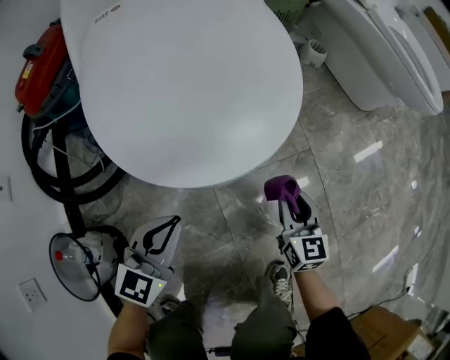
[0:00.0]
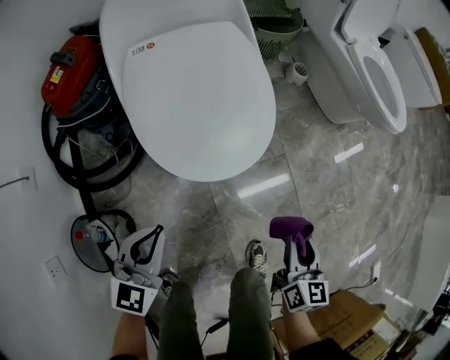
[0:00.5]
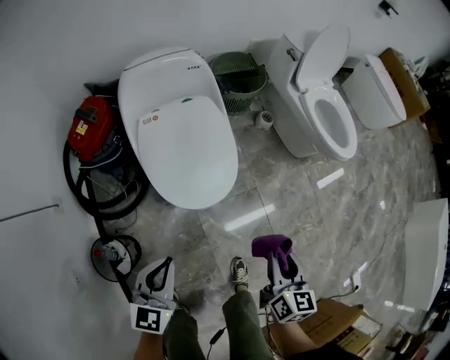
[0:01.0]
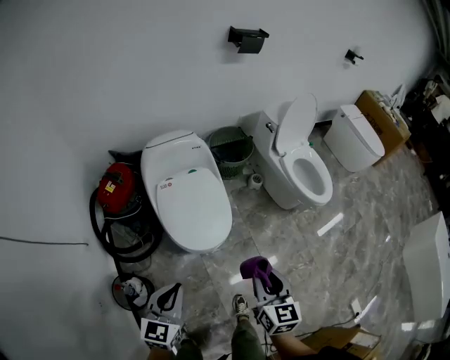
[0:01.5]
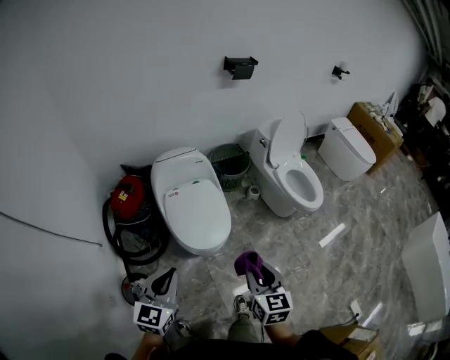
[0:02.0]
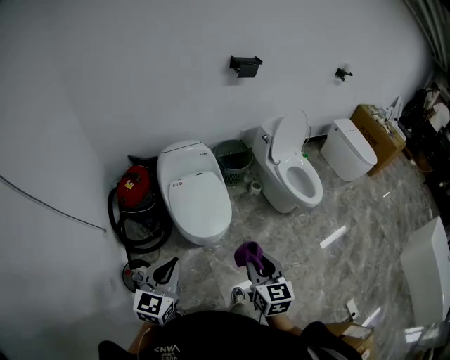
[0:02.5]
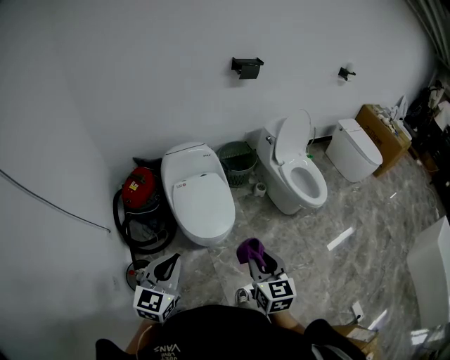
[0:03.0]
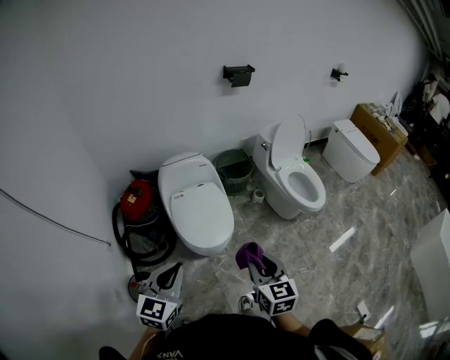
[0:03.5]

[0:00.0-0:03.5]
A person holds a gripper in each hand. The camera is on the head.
0:00.0 to 0:02.0: The grippers both shift upward by roughly 70 cm.
0:02.0 to 0:03.5: The left gripper moves about 5 cm.

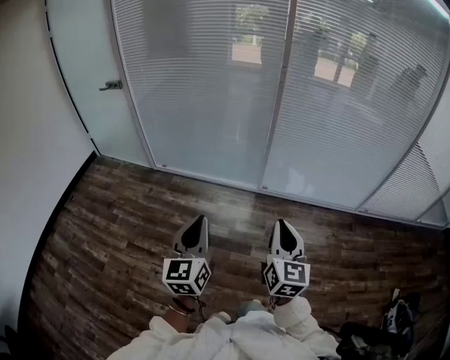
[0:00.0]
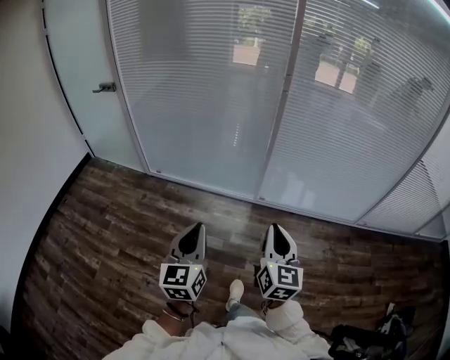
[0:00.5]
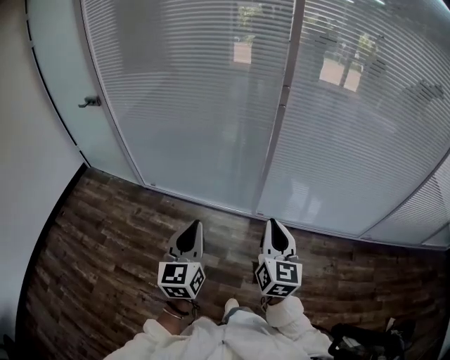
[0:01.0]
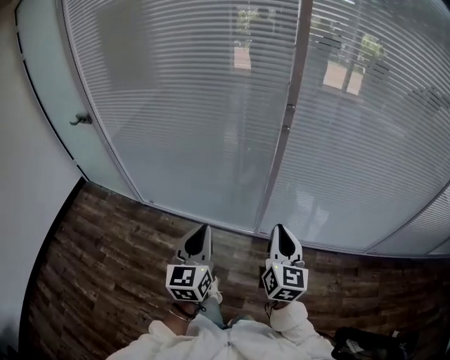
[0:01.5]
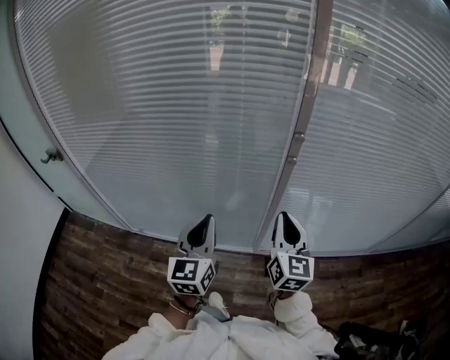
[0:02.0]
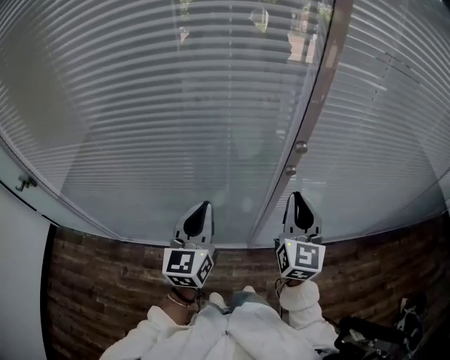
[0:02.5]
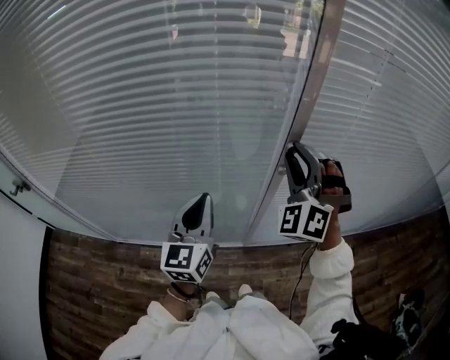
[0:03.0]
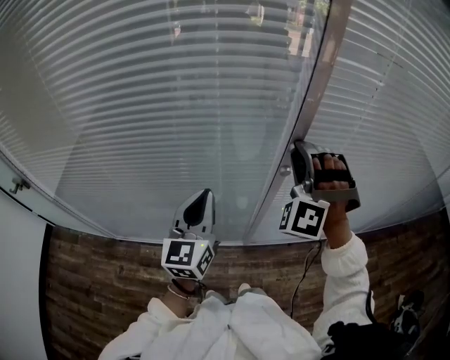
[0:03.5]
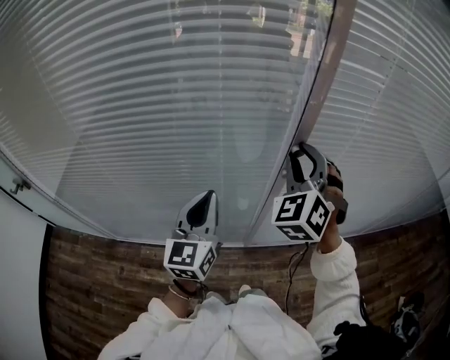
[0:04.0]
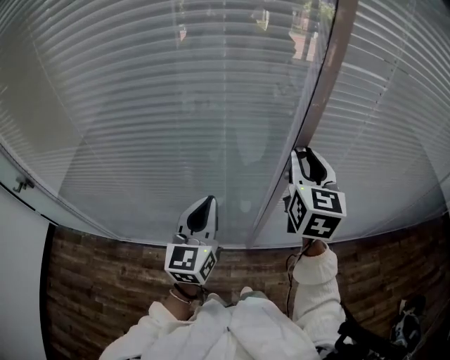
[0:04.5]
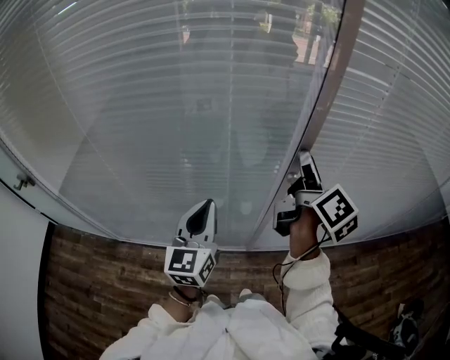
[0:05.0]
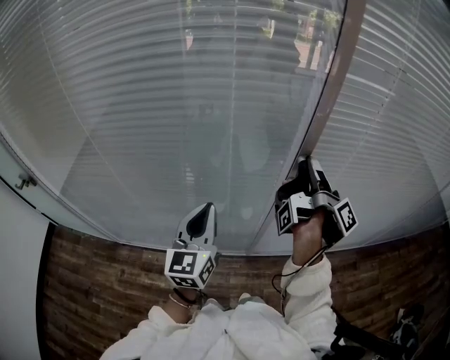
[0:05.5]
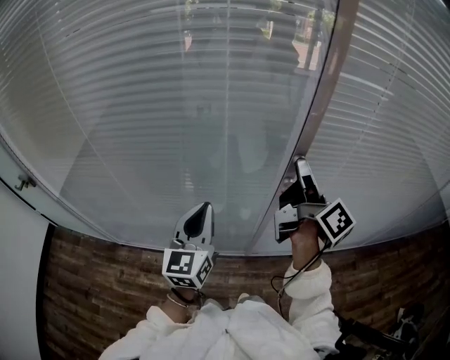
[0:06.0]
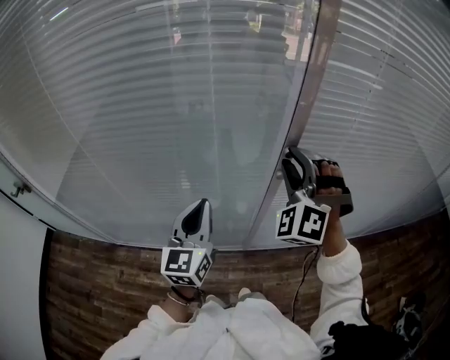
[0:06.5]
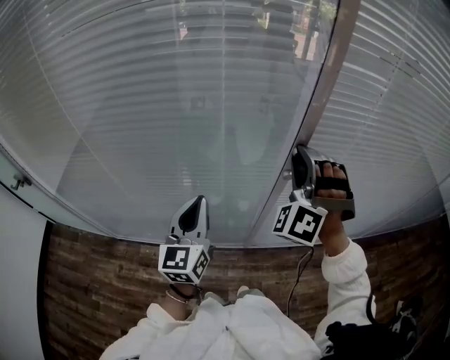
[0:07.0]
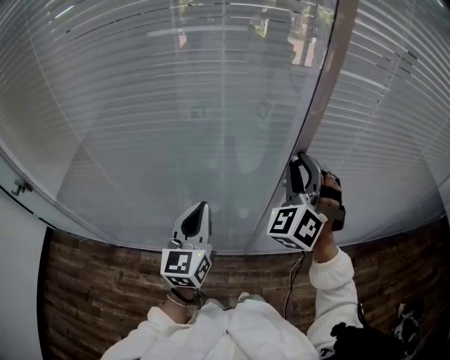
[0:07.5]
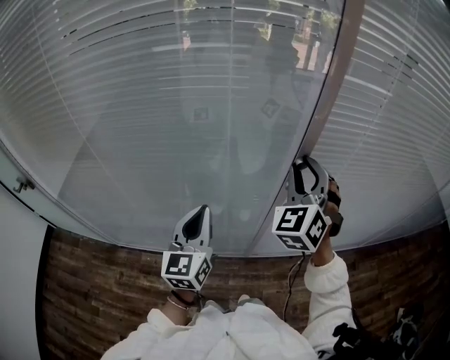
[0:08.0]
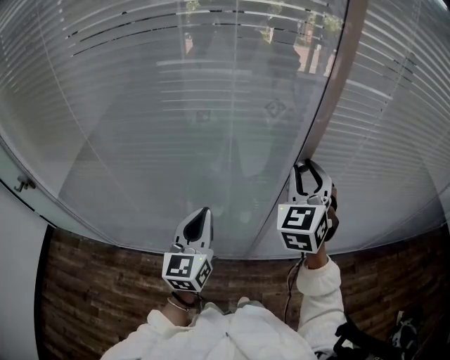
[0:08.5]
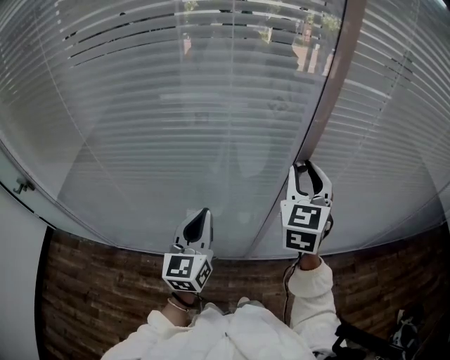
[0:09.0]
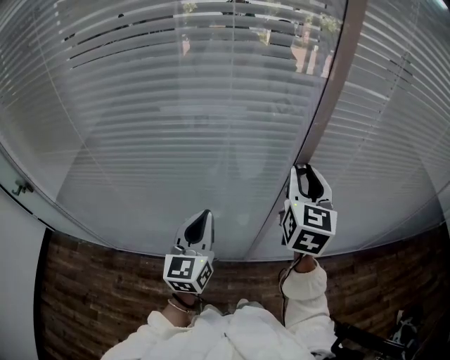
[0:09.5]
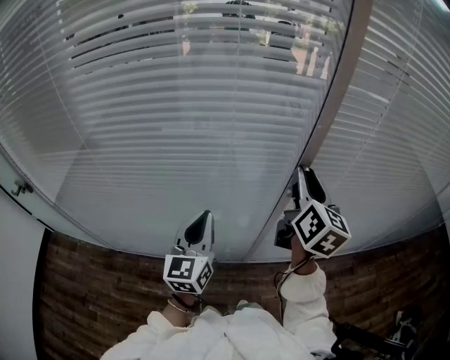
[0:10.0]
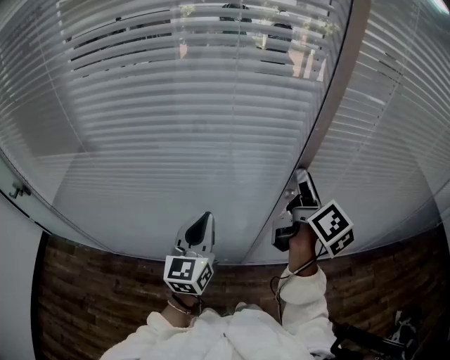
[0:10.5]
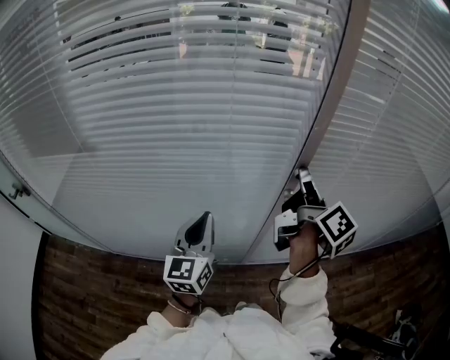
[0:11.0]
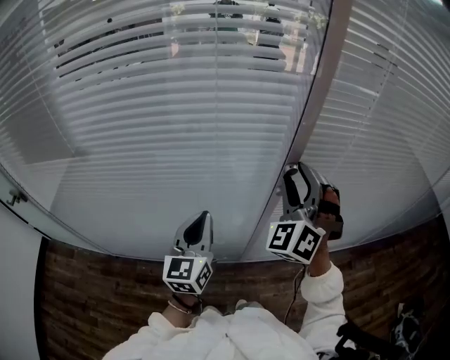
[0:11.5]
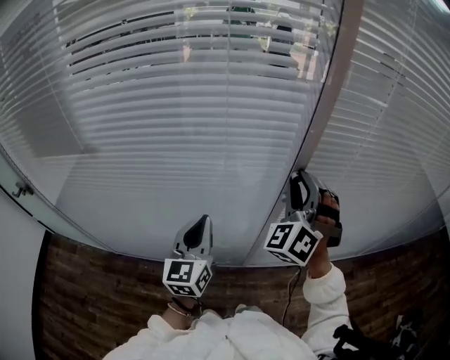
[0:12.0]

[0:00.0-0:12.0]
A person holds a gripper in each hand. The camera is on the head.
0:00.0 to 0:02.0: Both grippers are carried forward, some 60 cm.
0:02.0 to 0:04.0: The right gripper moves forward and upward, approximately 20 cm, rotates around the line of its fingers by some 60 degrees, counterclockwise from behind, and opens its fingers. The left gripper travels forward by approximately 15 cm.
0:04.0 to 0:06.0: The right gripper rotates around the line of its fingers by about 120 degrees, clockwise from behind.
0:06.0 to 0:08.0: The right gripper twists about 110 degrees counterclockwise, seen from behind.
0:08.0 to 0:10.0: The right gripper rotates around the line of its fingers by some 70 degrees, clockwise from behind.
0:10.0 to 0:12.0: The right gripper twists approximately 90 degrees counterclockwise, seen from behind.

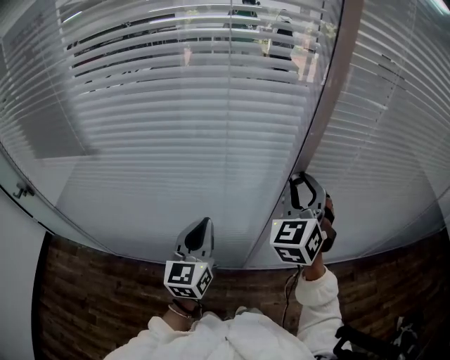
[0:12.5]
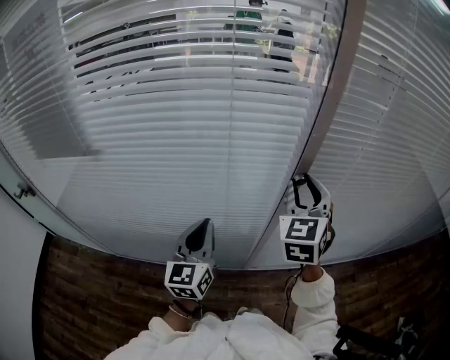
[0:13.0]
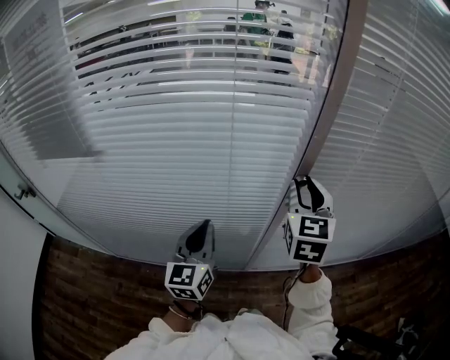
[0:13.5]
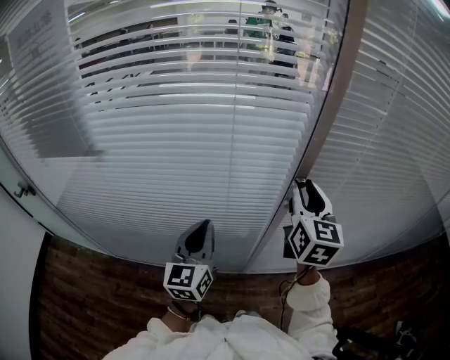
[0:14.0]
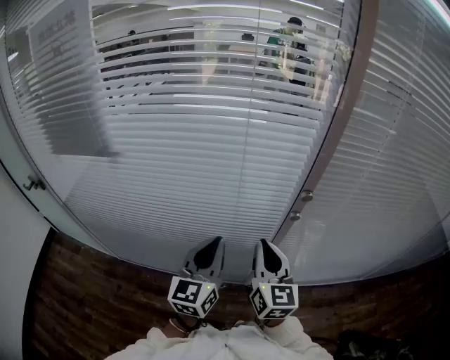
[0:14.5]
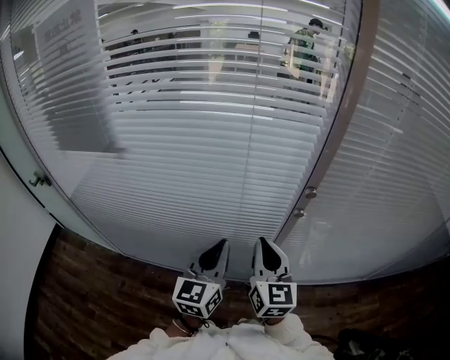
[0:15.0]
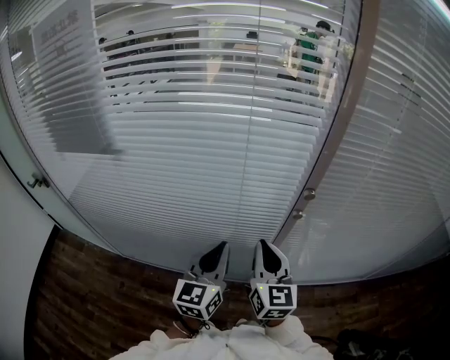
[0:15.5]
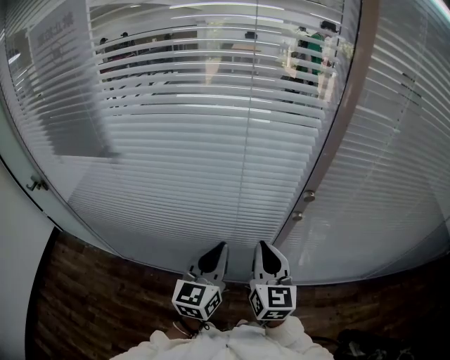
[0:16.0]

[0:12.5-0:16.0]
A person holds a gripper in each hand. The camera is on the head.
0:12.5 to 0:14.5: The right gripper goes about 15 cm downward, backward and to the left, rotates around the line of its fingers by roughly 50 degrees, clockwise from behind, and closes its fingers.
0:14.5 to 0:16.0: The grippers stay close to where they were, moving slightly.

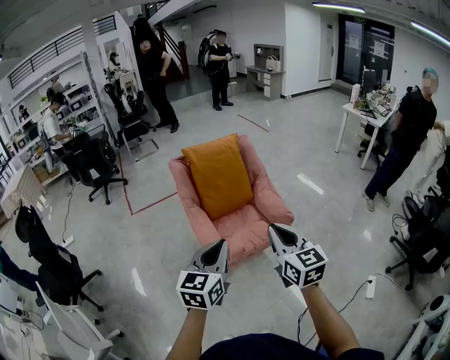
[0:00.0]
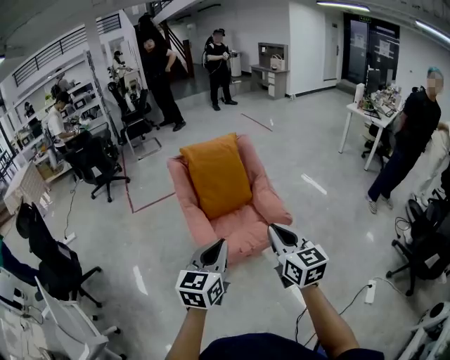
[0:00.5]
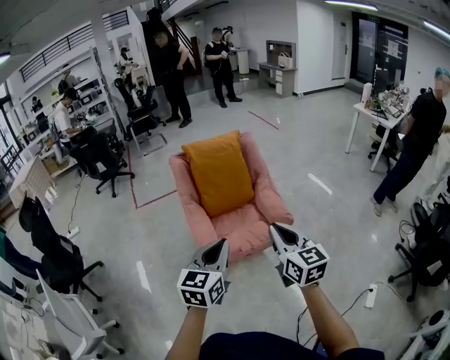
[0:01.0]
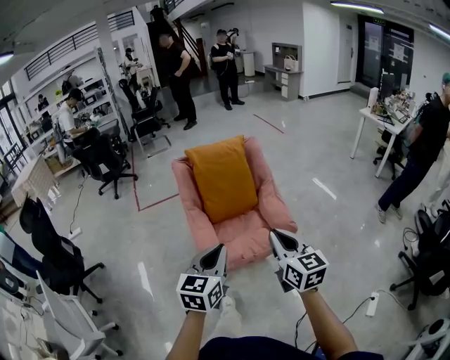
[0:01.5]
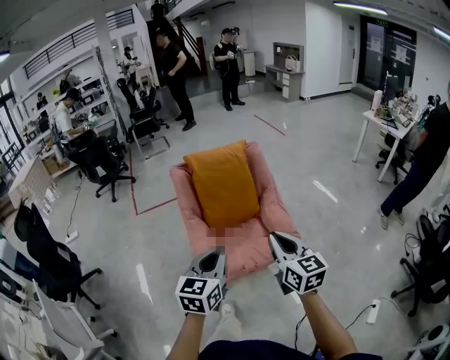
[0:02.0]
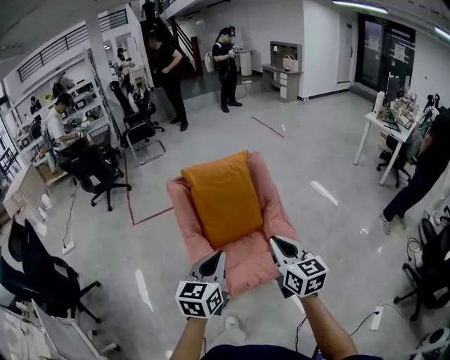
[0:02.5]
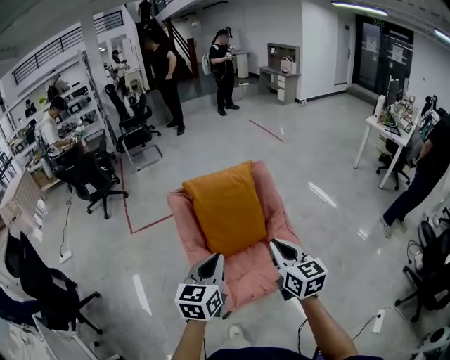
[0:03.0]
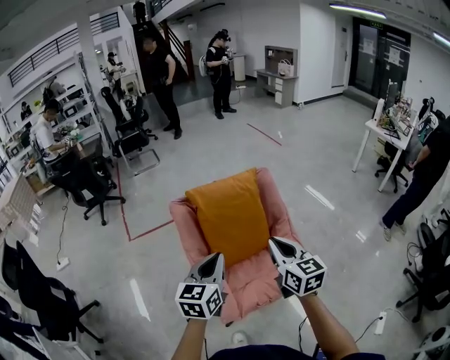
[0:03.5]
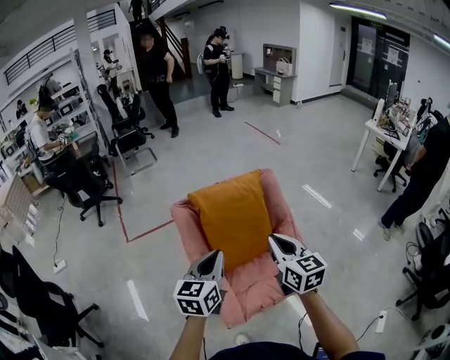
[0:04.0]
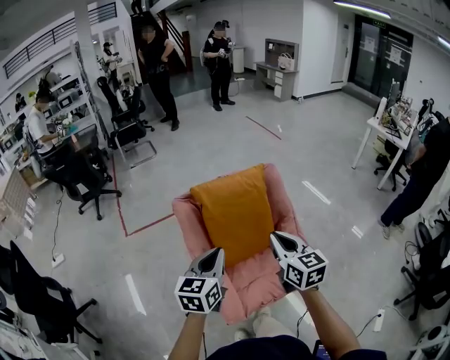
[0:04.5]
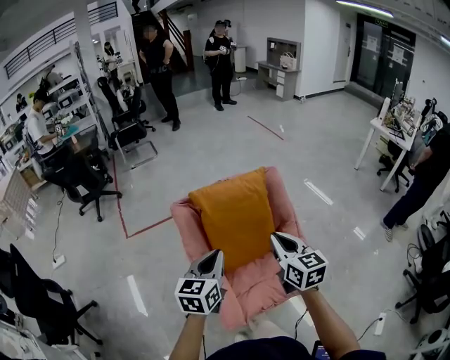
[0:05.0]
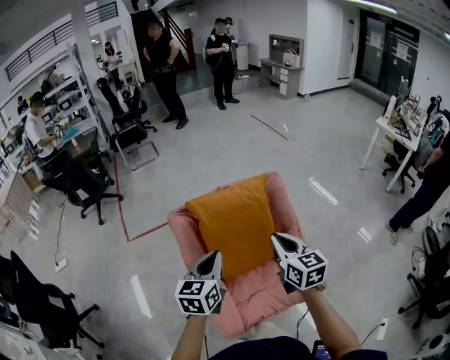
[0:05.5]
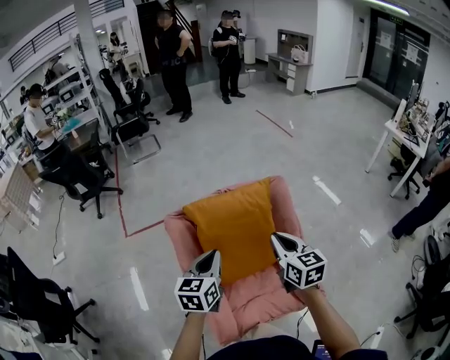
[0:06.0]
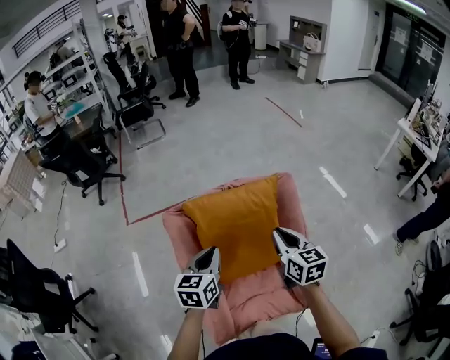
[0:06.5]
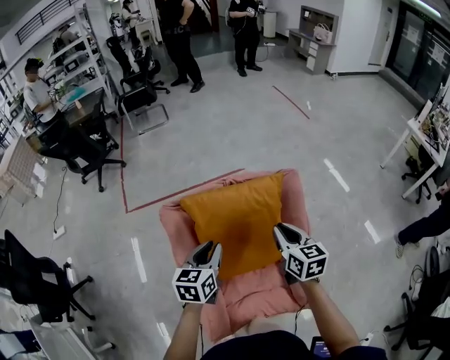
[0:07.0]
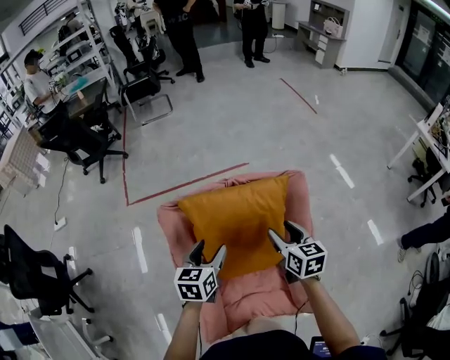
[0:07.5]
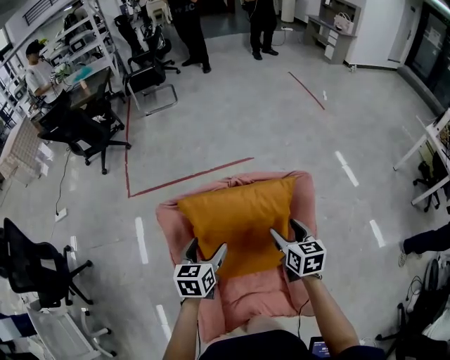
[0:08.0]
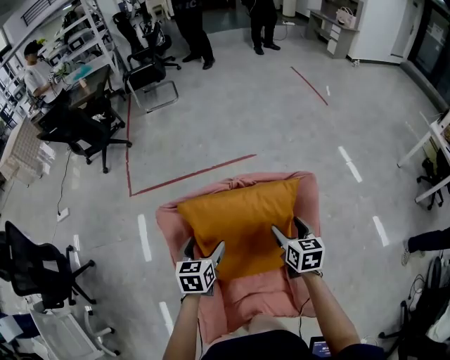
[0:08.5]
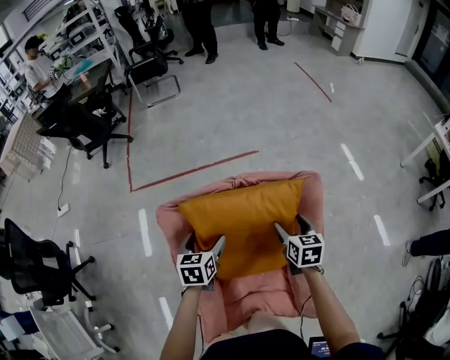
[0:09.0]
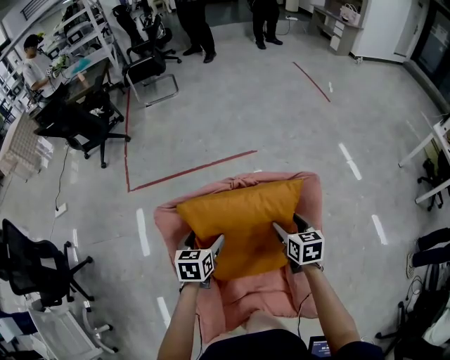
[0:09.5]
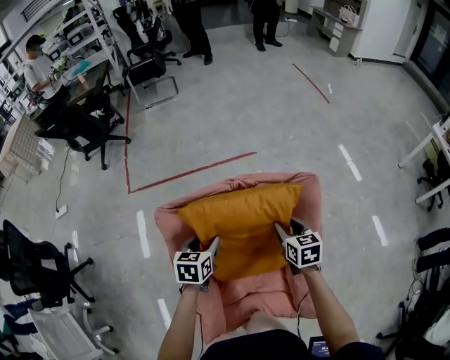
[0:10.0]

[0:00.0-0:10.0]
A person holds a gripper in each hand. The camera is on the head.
0:00.0 to 0:02.0: The two grippers go about 10 cm forward.
0:02.0 to 0:04.0: The left gripper goes approximately 30 cm forward and to the left, while the right gripper goes some 25 cm forward.
0:04.0 to 0:06.0: The right gripper shifts about 15 cm forward. The left gripper travels forward and downward by some 15 cm.
0:06.0 to 0:08.0: The left gripper travels downward and forward by some 20 cm, and opens its fingers; the right gripper is displaced forward and downward by some 20 cm, and opens.
0:08.0 to 0:10.0: The two grippers go roughly 5 cm downward. The left gripper closes up. Meanwhile the right gripper closes its fingers.
